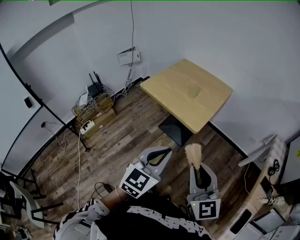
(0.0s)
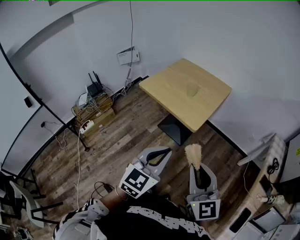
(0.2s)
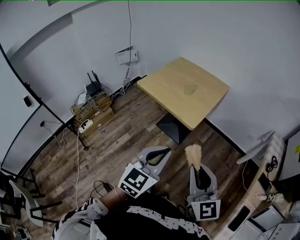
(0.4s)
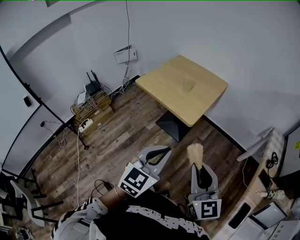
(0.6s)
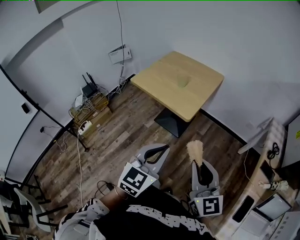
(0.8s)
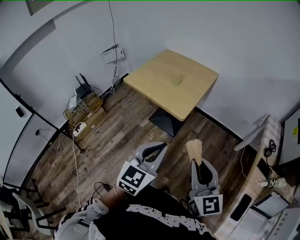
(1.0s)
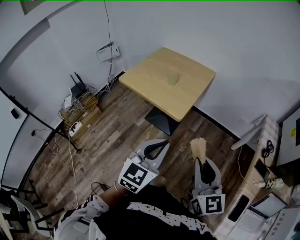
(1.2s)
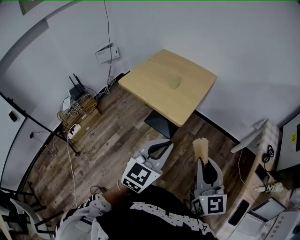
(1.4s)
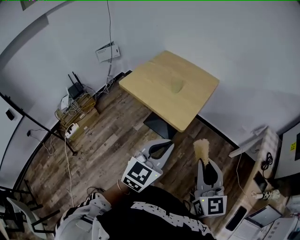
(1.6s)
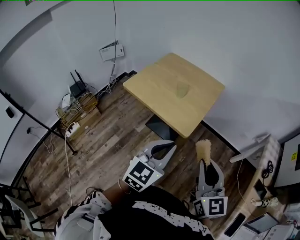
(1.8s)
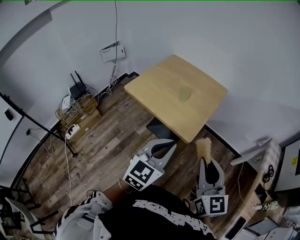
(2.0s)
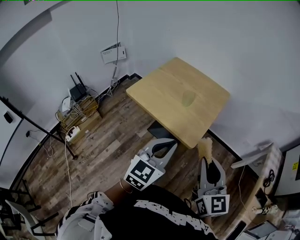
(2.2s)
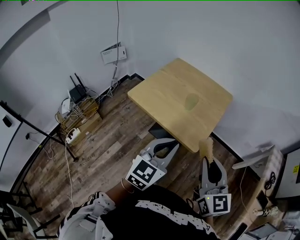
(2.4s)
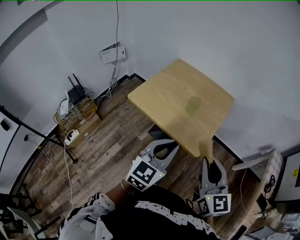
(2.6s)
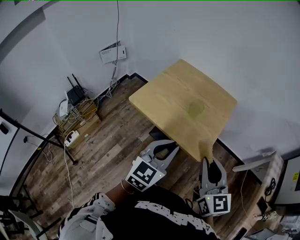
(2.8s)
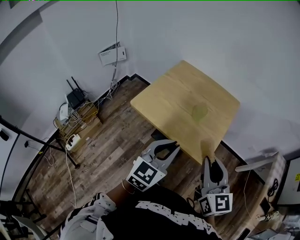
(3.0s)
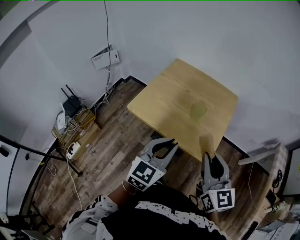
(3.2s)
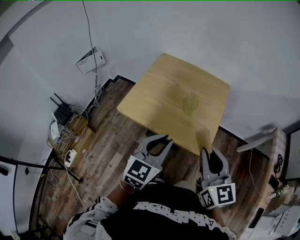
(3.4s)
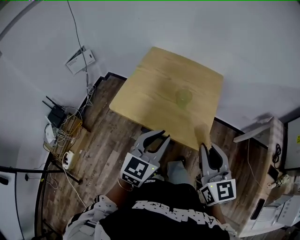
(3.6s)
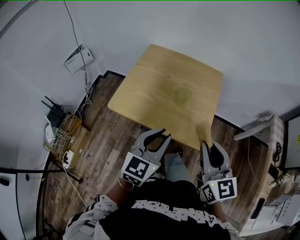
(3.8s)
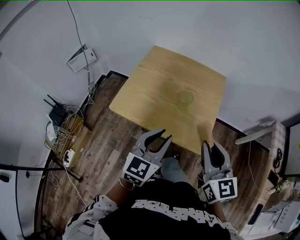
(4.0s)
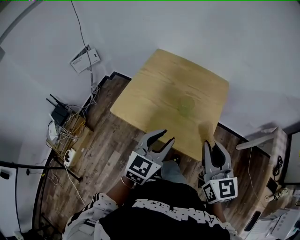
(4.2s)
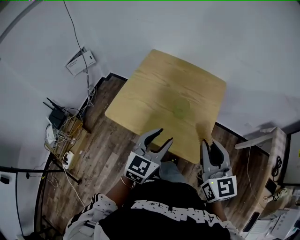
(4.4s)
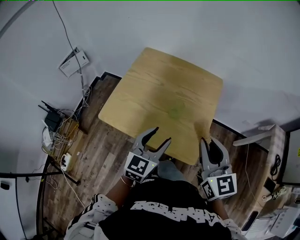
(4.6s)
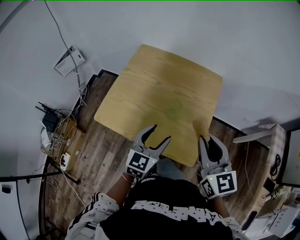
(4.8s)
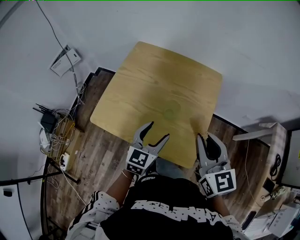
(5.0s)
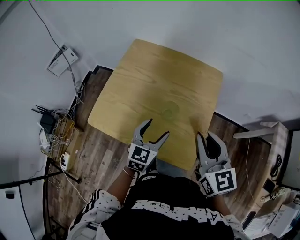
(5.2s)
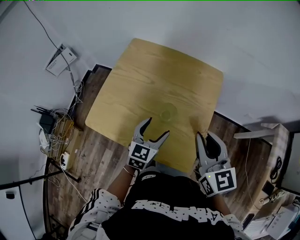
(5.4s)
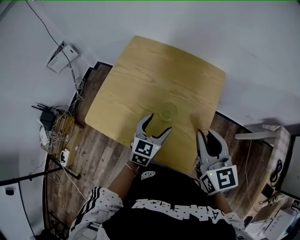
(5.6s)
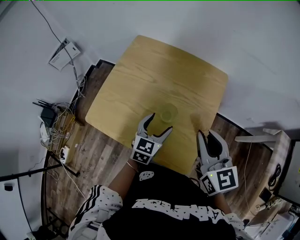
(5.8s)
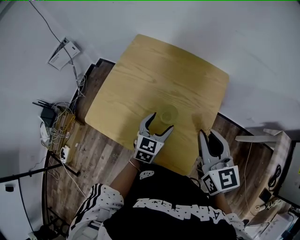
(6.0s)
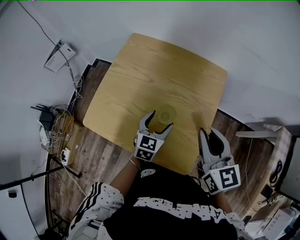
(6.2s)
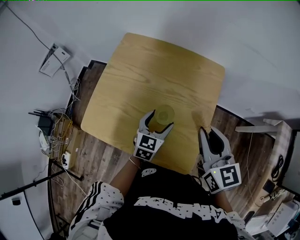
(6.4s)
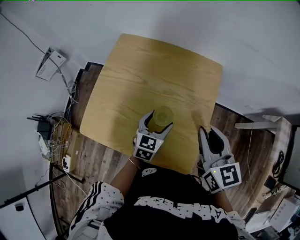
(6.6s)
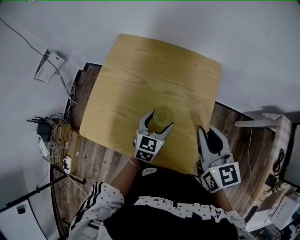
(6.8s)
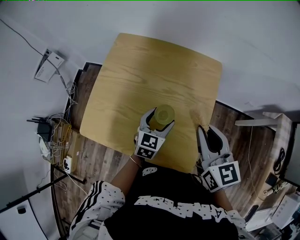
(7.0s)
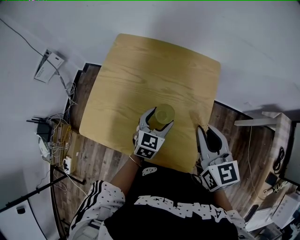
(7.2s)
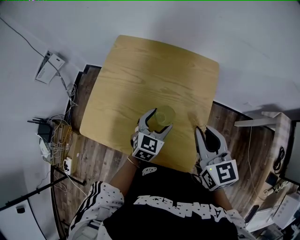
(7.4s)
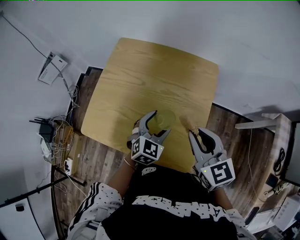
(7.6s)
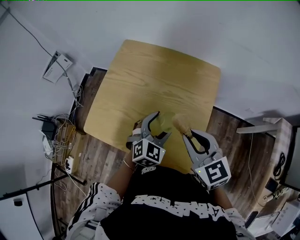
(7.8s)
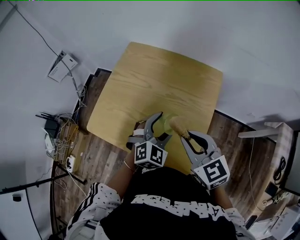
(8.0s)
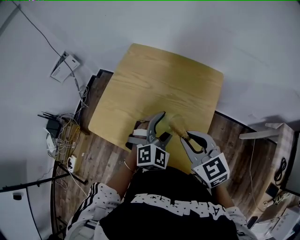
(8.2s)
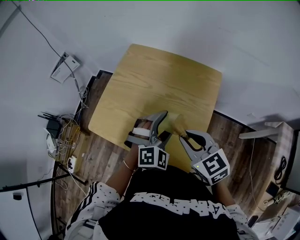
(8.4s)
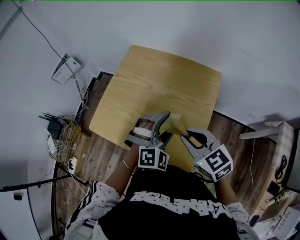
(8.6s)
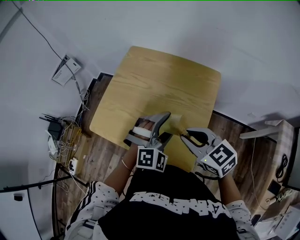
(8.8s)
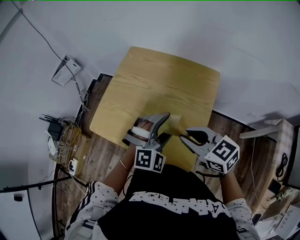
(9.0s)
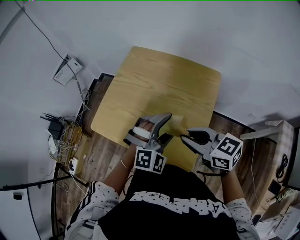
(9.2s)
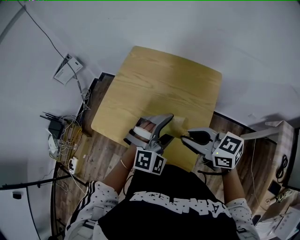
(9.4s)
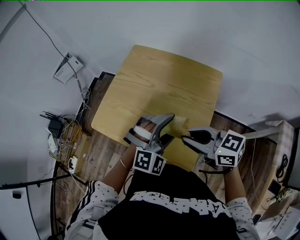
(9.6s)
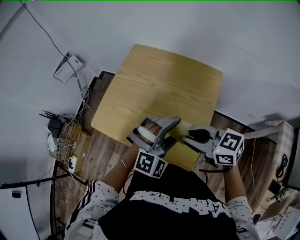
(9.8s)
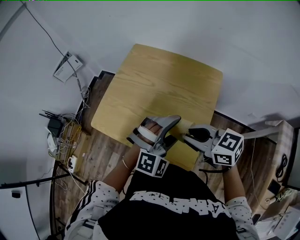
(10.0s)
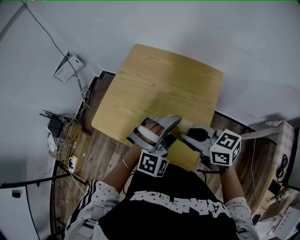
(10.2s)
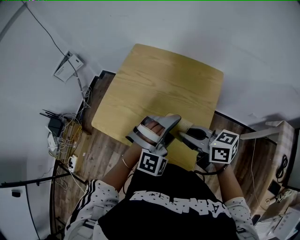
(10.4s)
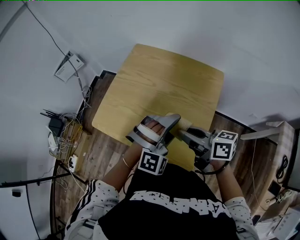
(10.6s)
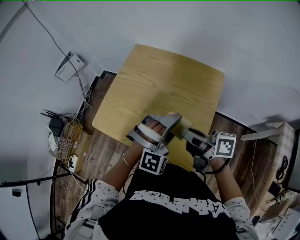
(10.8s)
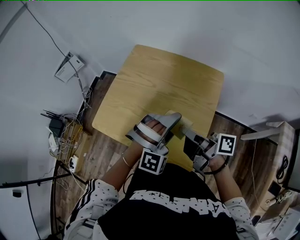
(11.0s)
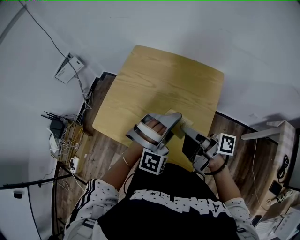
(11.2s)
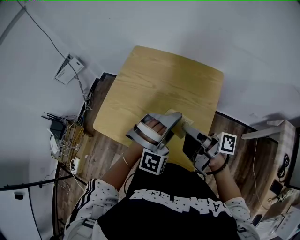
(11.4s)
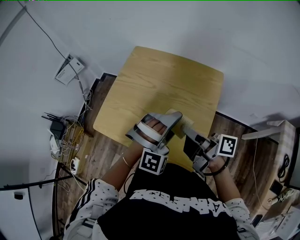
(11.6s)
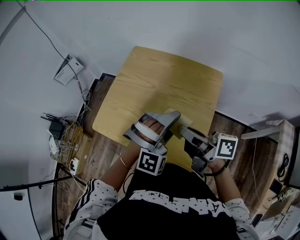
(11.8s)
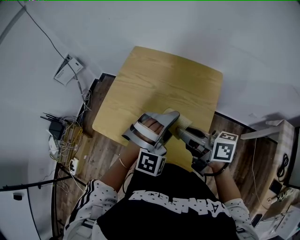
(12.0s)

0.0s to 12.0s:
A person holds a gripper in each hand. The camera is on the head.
0.0s to 1.6s: The left gripper goes roughly 10 cm forward, while the right gripper shifts about 10 cm forward and to the right.
1.6s to 3.0s: The left gripper shifts approximately 25 cm to the left and forward, while the right gripper travels forward and to the left by about 25 cm.
3.0s to 4.4s: The left gripper shifts some 10 cm forward and downward, and opens; the right gripper goes some 10 cm forward.
4.4s to 6.0s: The right gripper shifts roughly 15 cm forward and downward; the left gripper is displaced downward and forward by some 25 cm, and opens.
6.0s to 7.6s: The left gripper changes its angle by some 20 degrees.
7.6s to 9.0s: The right gripper changes its angle by approximately 30 degrees, while the left gripper is displaced upward by roughly 10 cm, and rotates roughly 40 degrees.
9.0s to 10.4s: The right gripper changes its angle by roughly 30 degrees.
10.4s to 12.0s: The right gripper rotates approximately 20 degrees.

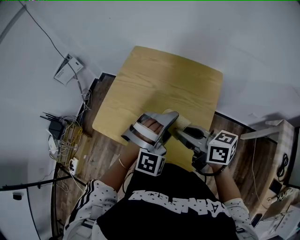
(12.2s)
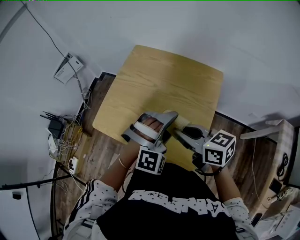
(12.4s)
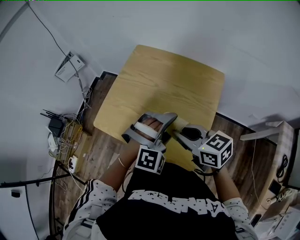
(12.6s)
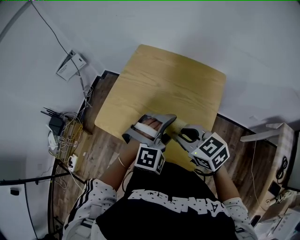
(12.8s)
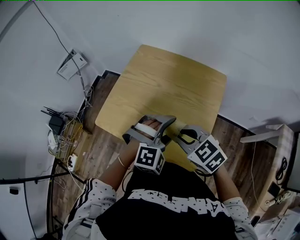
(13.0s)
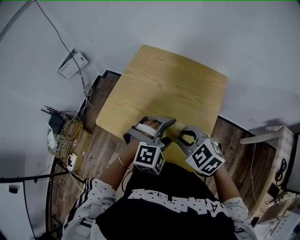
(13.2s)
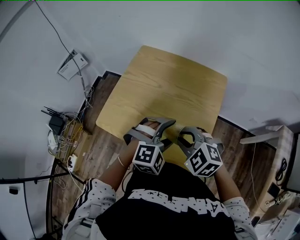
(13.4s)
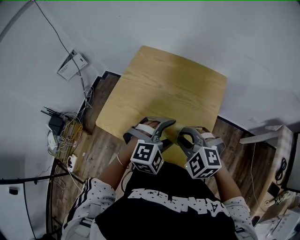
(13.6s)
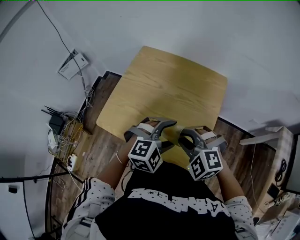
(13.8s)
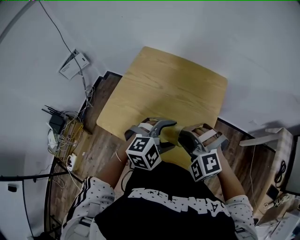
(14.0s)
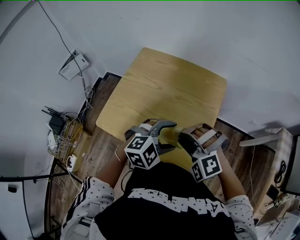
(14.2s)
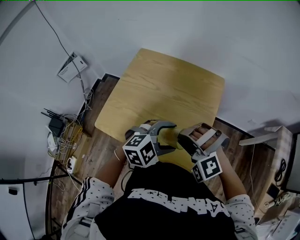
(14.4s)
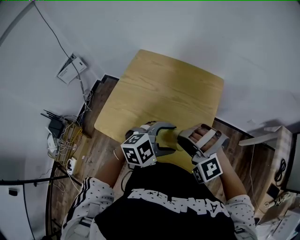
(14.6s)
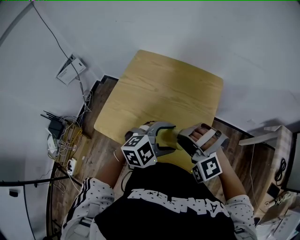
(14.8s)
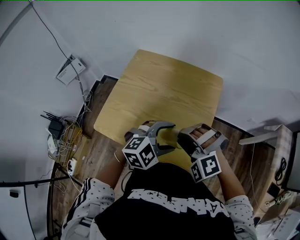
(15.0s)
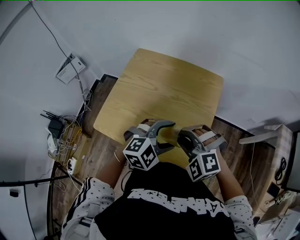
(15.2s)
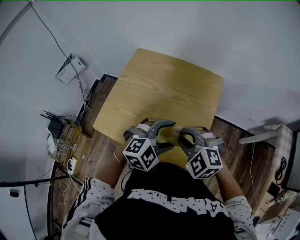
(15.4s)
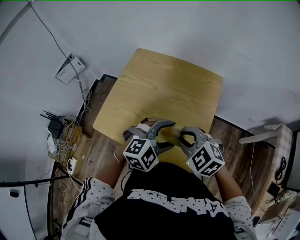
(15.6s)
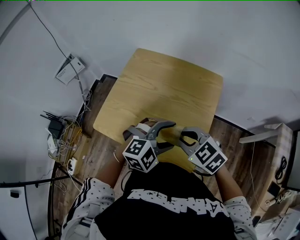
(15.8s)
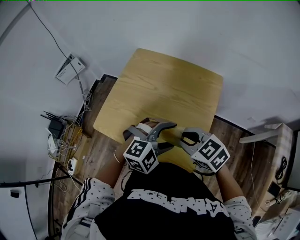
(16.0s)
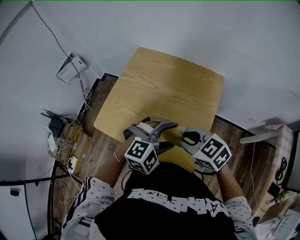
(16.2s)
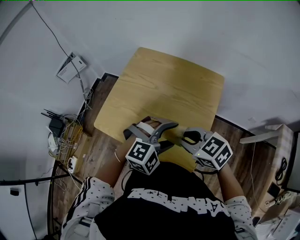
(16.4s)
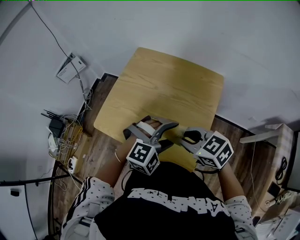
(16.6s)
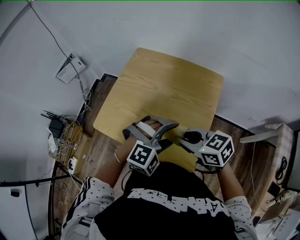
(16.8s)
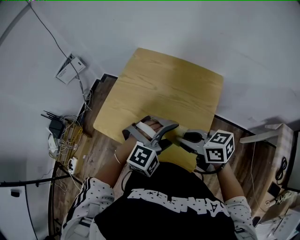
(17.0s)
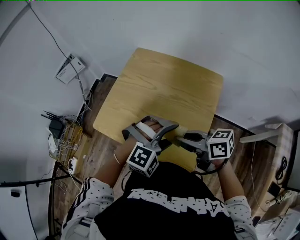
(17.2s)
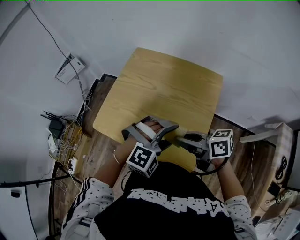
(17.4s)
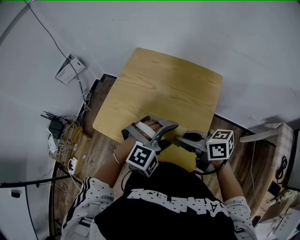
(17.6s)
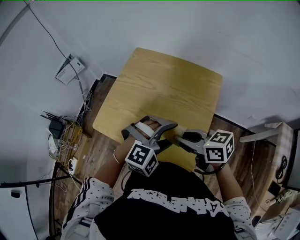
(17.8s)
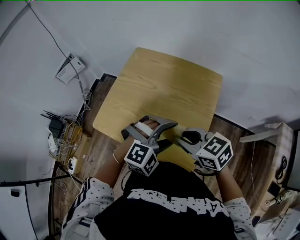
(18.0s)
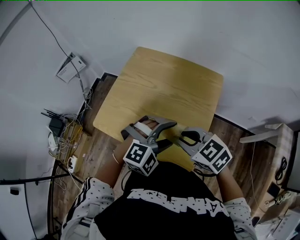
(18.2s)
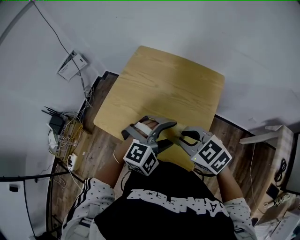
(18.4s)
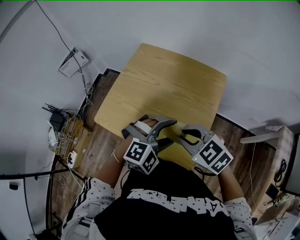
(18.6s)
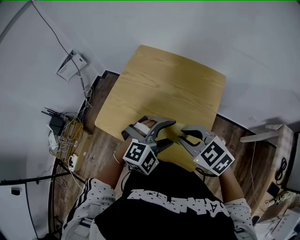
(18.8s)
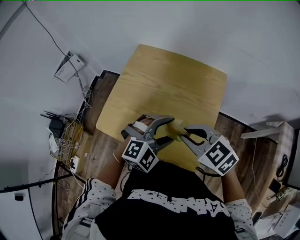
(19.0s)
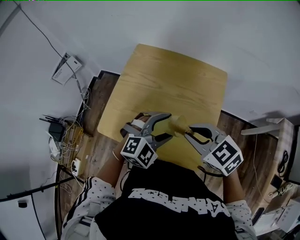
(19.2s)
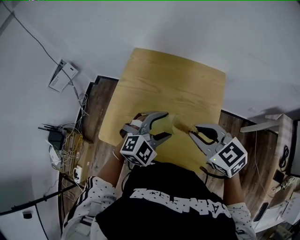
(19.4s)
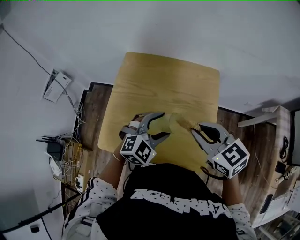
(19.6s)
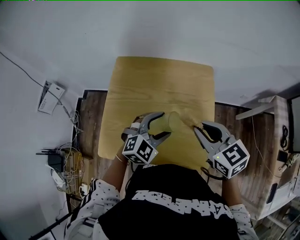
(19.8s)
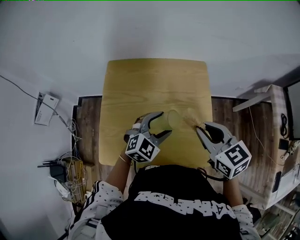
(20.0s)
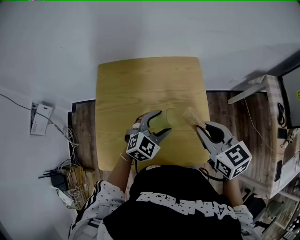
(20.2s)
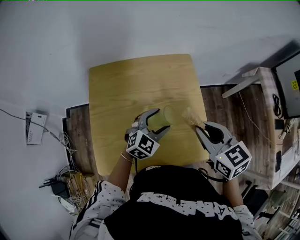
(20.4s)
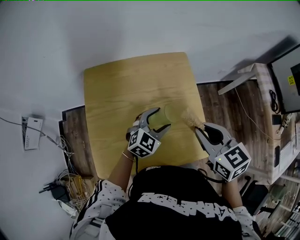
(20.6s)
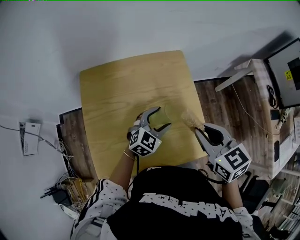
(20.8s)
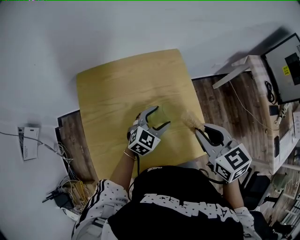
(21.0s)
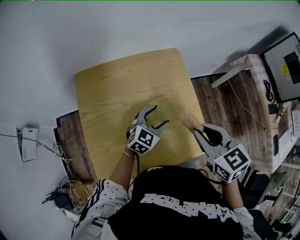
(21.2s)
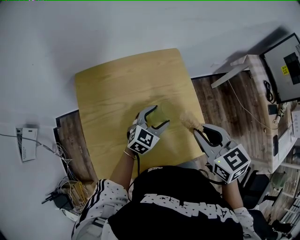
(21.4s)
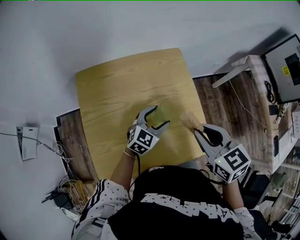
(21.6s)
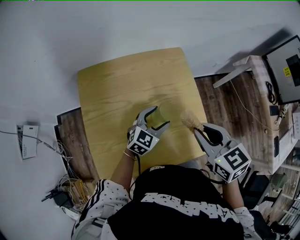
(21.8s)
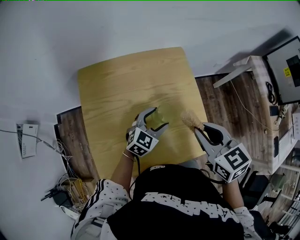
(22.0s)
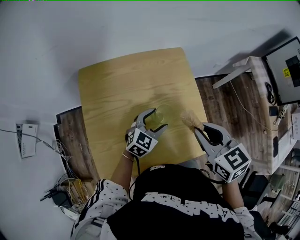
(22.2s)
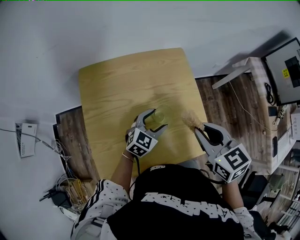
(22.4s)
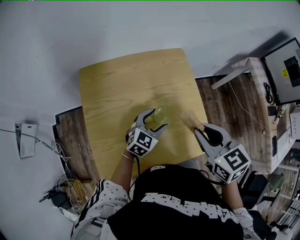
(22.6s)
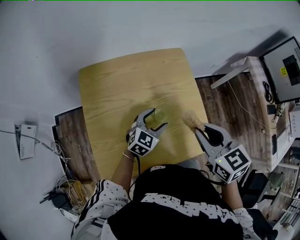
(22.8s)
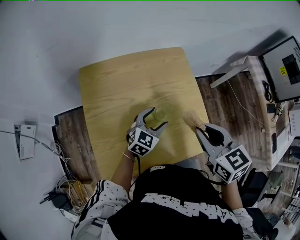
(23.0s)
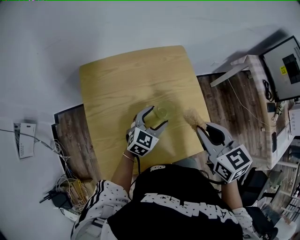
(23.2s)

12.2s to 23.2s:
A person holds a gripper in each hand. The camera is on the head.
12.2s to 13.8s: The right gripper moves approximately 5 cm, and rolls counterclockwise, seen from behind, by roughly 80 degrees, while the left gripper moves approximately 5 cm, and changes its angle by about 30 degrees.
15.4s to 17.0s: The right gripper rolls clockwise, seen from behind, by roughly 60 degrees, while the left gripper changes its angle by roughly 20 degrees.
17.0s to 18.4s: The right gripper rotates roughly 40 degrees.
18.4s to 20.0s: The left gripper shifts by approximately 15 cm, and swivels approximately 20 degrees. Meanwhile the right gripper moves some 10 cm, and swivels some 50 degrees.
20.0s to 21.6s: The left gripper travels downward by about 5 cm.
21.6s to 23.2s: The grippers move only a little.

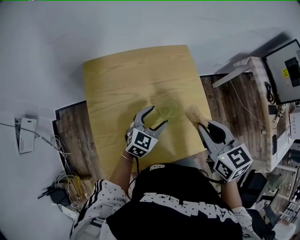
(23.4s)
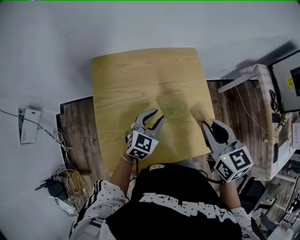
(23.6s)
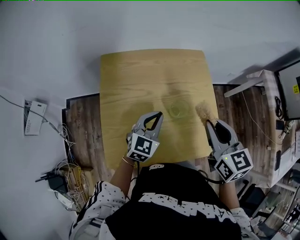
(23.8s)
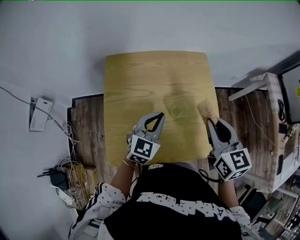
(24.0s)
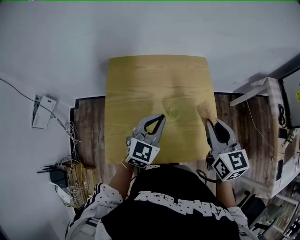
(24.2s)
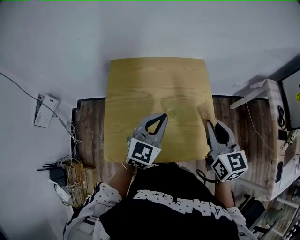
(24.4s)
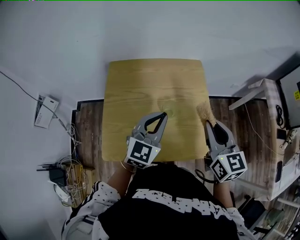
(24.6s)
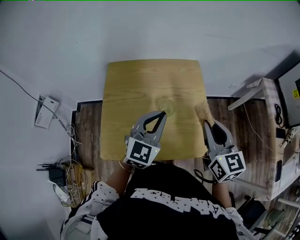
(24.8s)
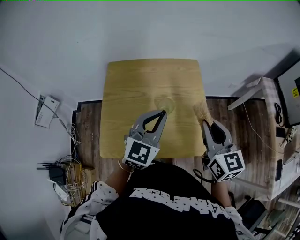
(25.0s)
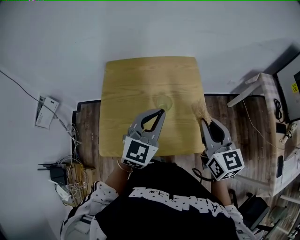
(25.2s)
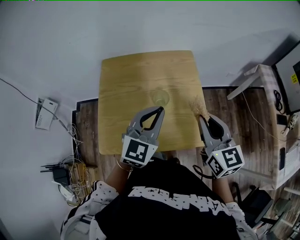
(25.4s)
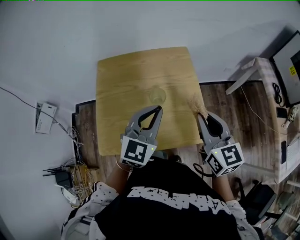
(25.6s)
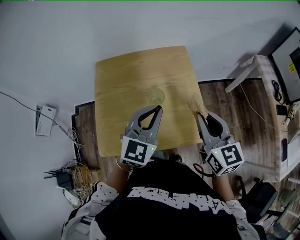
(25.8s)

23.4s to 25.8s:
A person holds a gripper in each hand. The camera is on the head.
23.4s to 24.6s: The left gripper heads upward, covering approximately 15 cm, rotates about 20 degrees, and closes up. The right gripper shifts about 5 cm to the right.
24.6s to 25.8s: The left gripper moves roughly 5 cm.
